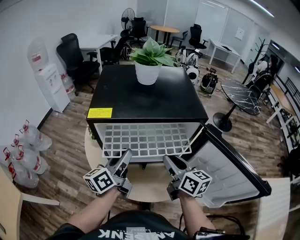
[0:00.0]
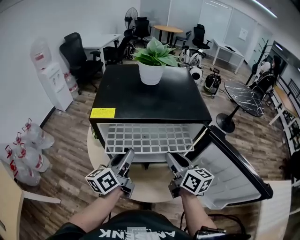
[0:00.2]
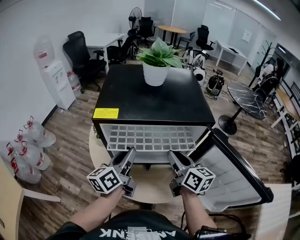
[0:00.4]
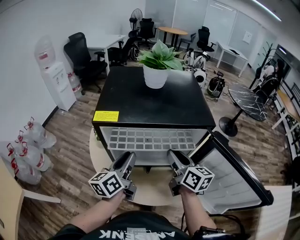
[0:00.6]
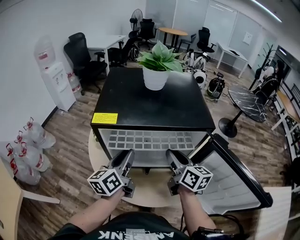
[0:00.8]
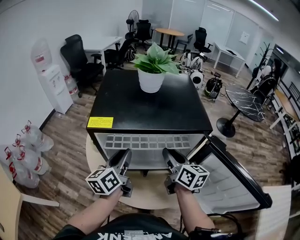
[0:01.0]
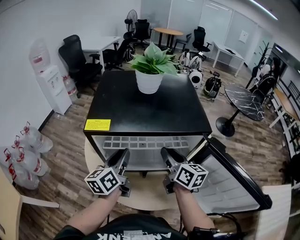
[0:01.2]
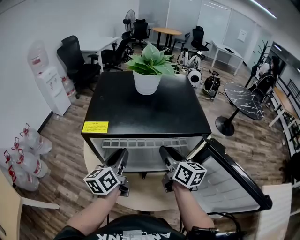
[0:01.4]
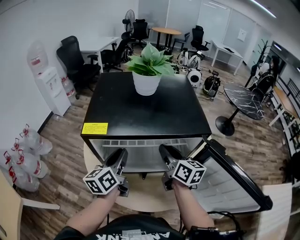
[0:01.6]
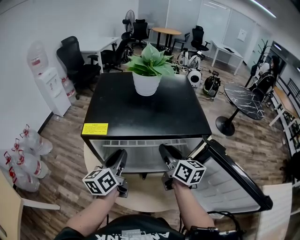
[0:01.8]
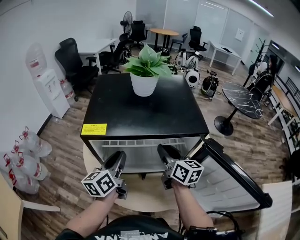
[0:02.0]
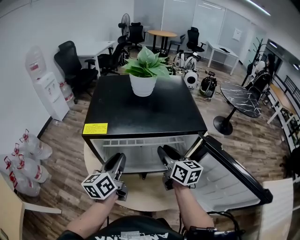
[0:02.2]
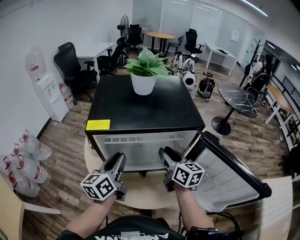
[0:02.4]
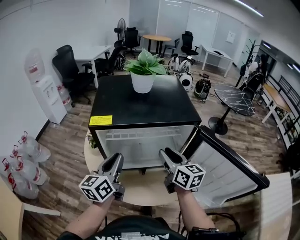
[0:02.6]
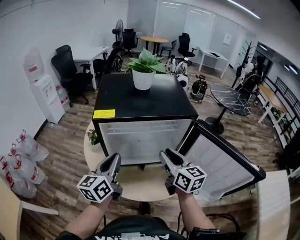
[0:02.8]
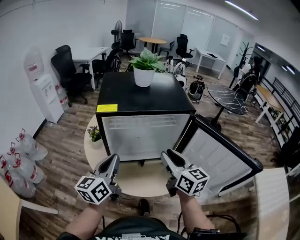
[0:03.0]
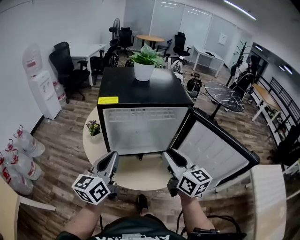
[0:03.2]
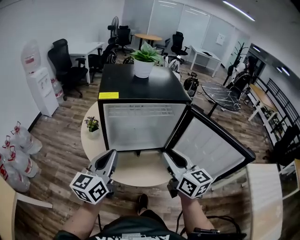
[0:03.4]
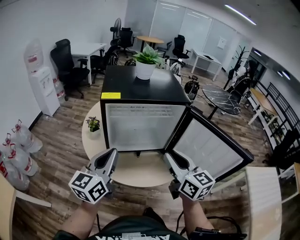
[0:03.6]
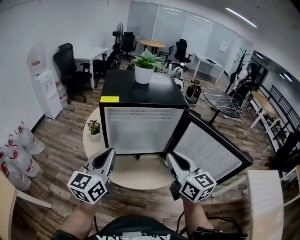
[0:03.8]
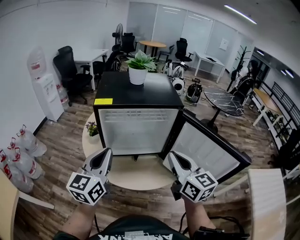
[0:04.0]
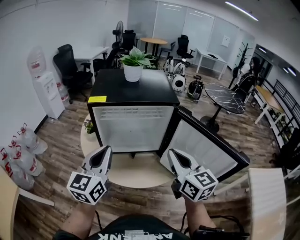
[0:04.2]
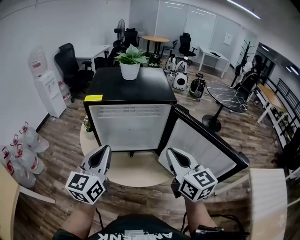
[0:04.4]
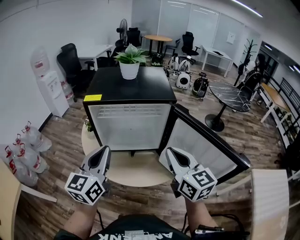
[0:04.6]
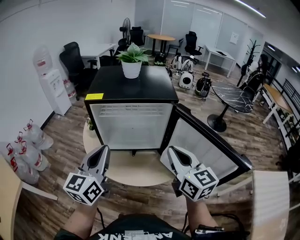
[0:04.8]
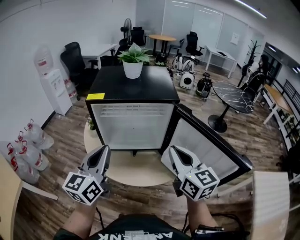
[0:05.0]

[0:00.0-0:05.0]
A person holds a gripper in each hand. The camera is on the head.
0:00.0 to 0:01.6: The right gripper travels forward by some 10 cm. Meanwhile the left gripper goes some 5 cm forward.
0:01.6 to 0:03.4: The two grippers go about 20 cm backward. The left gripper swivels about 20 degrees.
0:03.4 to 0:05.0: The right gripper moves to the right, approximately 10 cm, and closes up; the left gripper is displaced to the right and upward by about 10 cm.

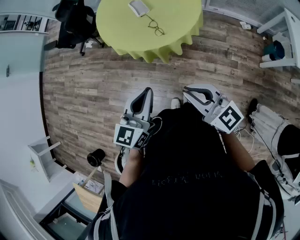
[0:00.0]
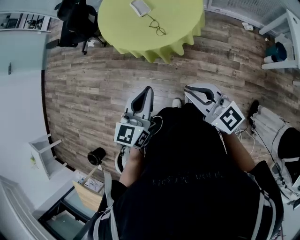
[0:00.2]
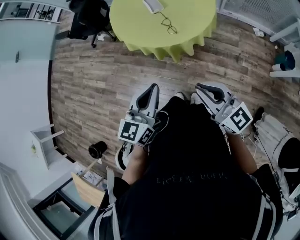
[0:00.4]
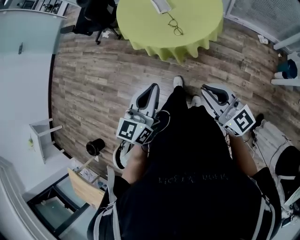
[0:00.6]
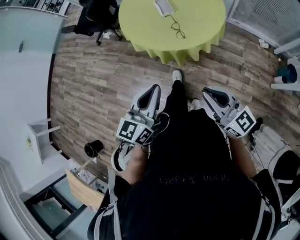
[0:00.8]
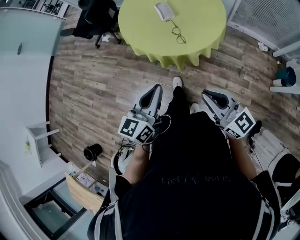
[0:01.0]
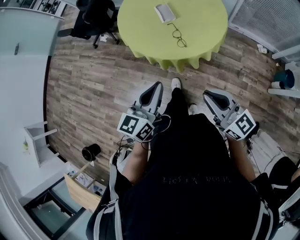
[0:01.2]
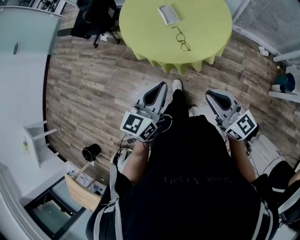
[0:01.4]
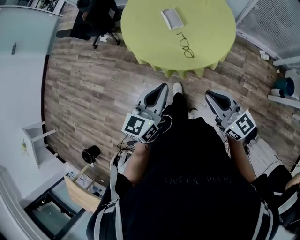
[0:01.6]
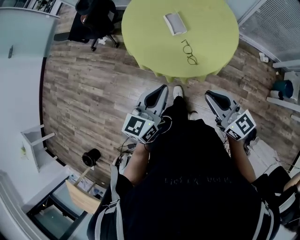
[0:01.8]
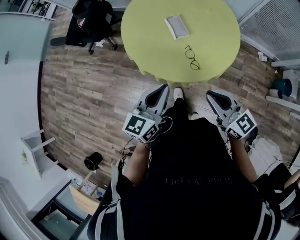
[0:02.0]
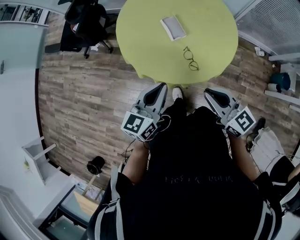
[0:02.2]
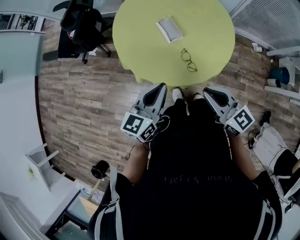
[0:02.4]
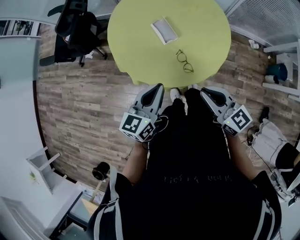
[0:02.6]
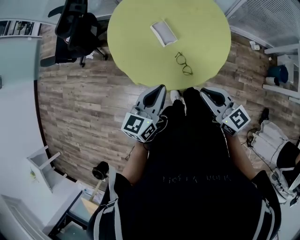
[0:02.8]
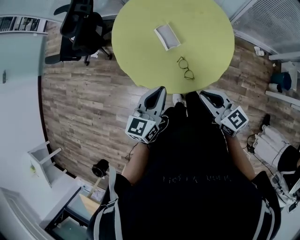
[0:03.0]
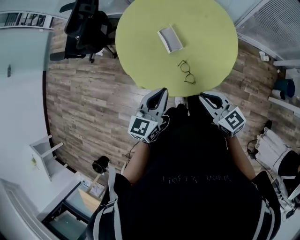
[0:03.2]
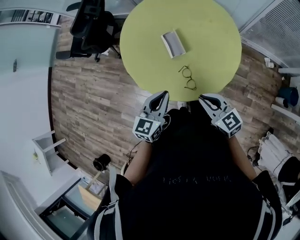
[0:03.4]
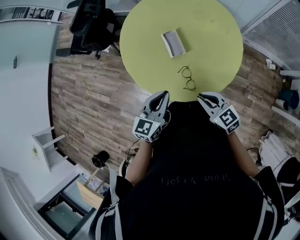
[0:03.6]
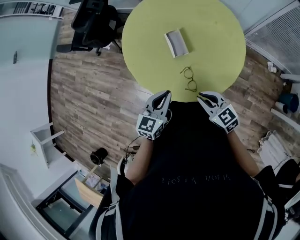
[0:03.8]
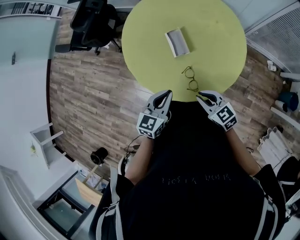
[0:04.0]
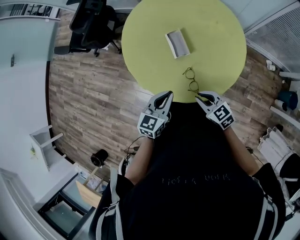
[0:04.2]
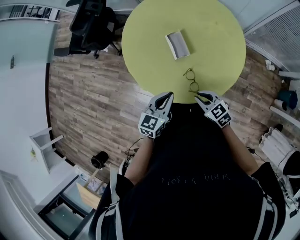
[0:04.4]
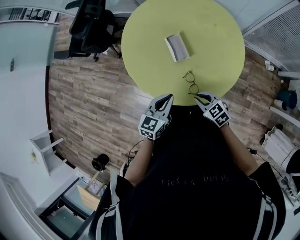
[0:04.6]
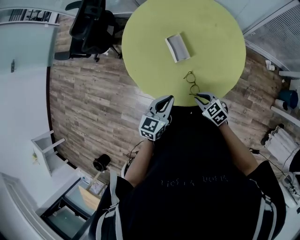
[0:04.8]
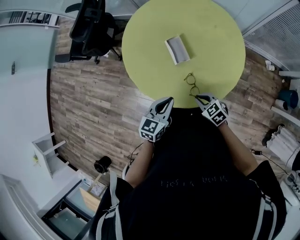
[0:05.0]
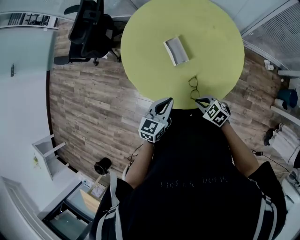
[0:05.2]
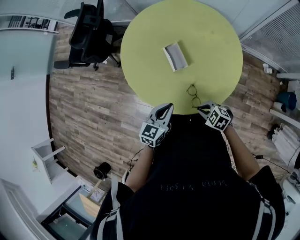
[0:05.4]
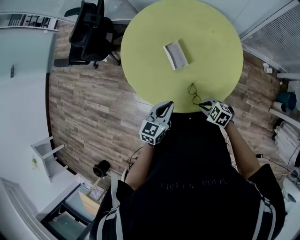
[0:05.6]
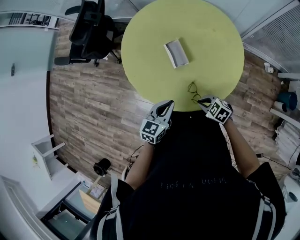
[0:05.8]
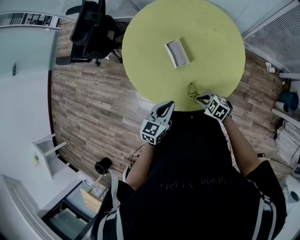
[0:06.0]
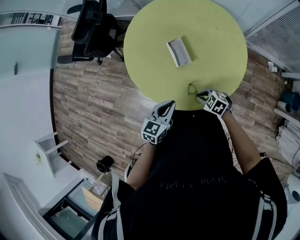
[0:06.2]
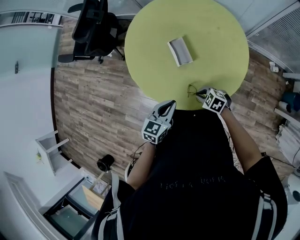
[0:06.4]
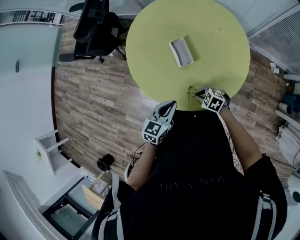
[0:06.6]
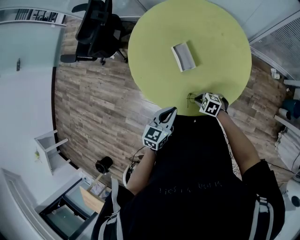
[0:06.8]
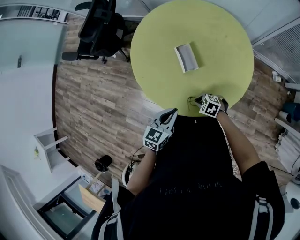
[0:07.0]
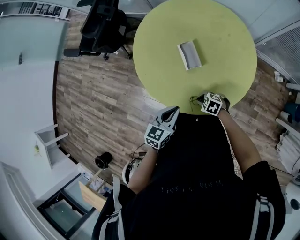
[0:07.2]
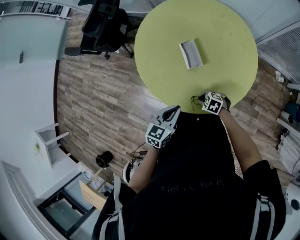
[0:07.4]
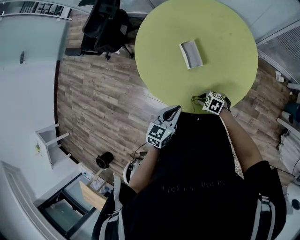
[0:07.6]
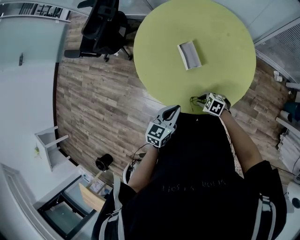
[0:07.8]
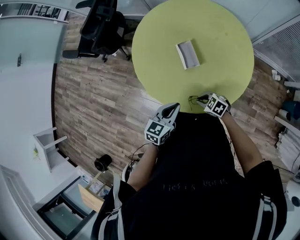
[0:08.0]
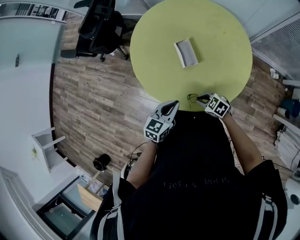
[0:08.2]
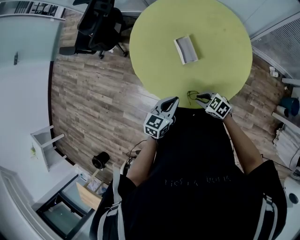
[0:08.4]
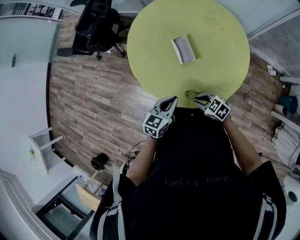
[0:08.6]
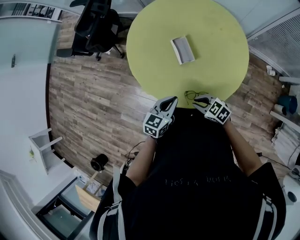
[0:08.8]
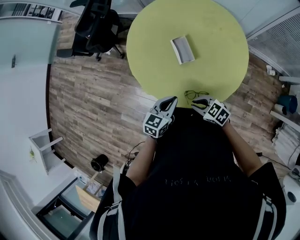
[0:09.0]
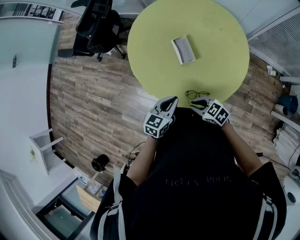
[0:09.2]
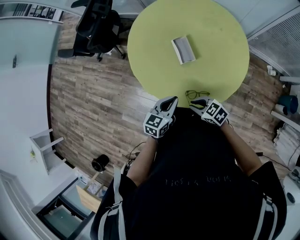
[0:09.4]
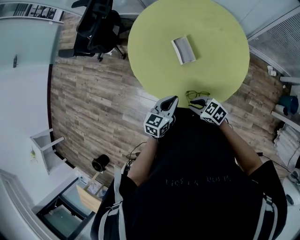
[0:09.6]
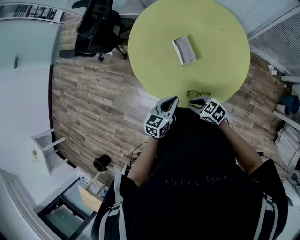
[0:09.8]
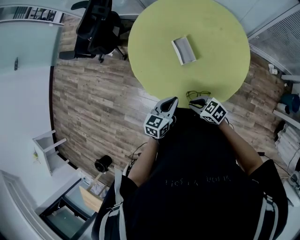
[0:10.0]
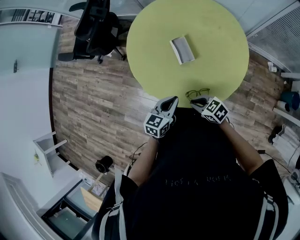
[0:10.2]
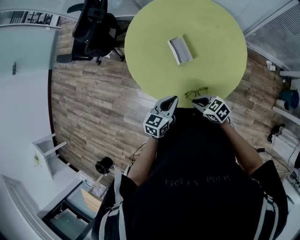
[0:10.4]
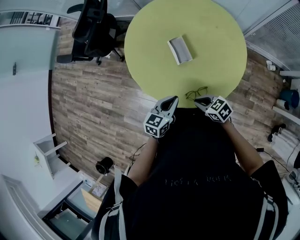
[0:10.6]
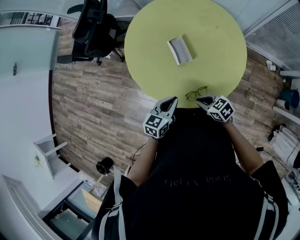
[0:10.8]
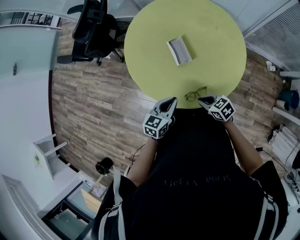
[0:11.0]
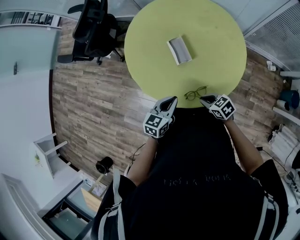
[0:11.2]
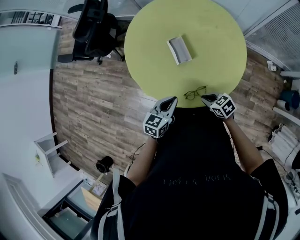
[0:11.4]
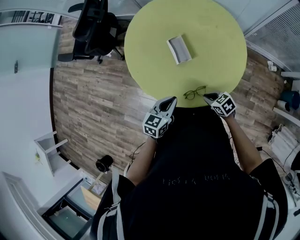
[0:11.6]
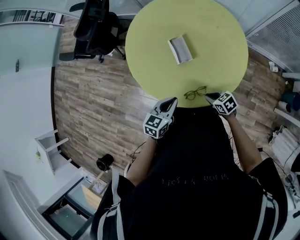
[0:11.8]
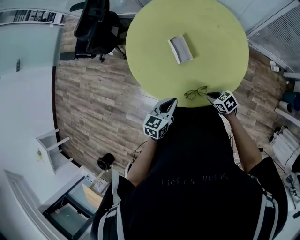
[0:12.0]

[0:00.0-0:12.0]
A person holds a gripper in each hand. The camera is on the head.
0:00.0 to 0:01.6: Both grippers move forward, roughly 15 cm.
0:01.6 to 0:03.0: The grippers both shift forward by about 15 cm.
0:03.0 to 0:04.4: The left gripper is displaced downward by roughly 10 cm; the right gripper heads downward, covering about 15 cm, and turns by some 30 degrees.
0:04.4 to 0:06.0: The right gripper moves downward, approximately 5 cm, and turns by some 20 degrees.
0:06.0 to 0:07.6: The right gripper heads downward, covering roughly 5 cm.
0:07.6 to 0:09.0: The right gripper shifts about 10 cm upward, and turns by roughly 20 degrees.
0:09.0 to 0:10.4: The grippers stay close to where they were, moving slightly.
0:10.4 to 0:12.0: The right gripper moves to the right and downward, approximately 10 cm.

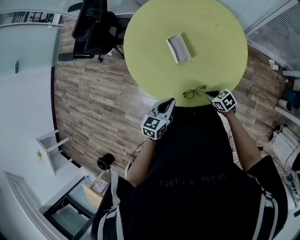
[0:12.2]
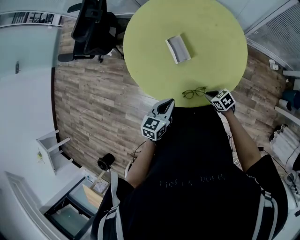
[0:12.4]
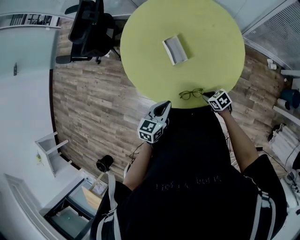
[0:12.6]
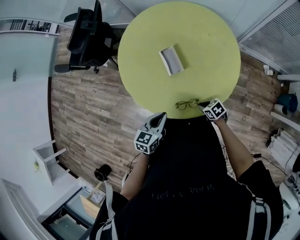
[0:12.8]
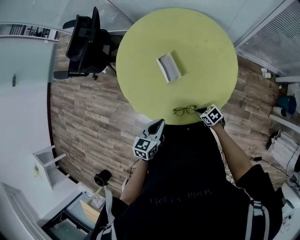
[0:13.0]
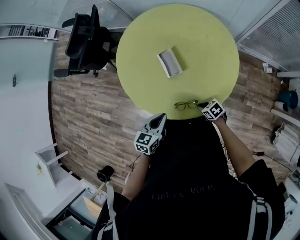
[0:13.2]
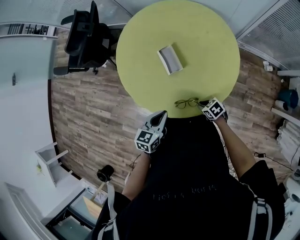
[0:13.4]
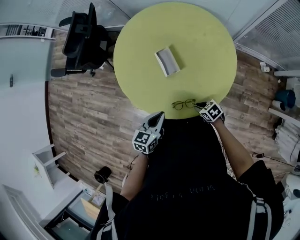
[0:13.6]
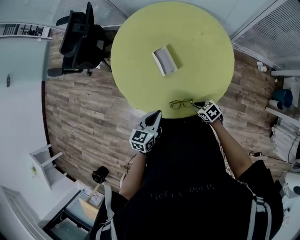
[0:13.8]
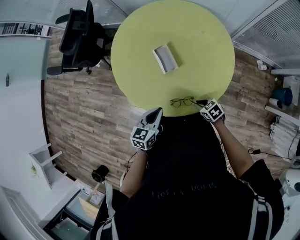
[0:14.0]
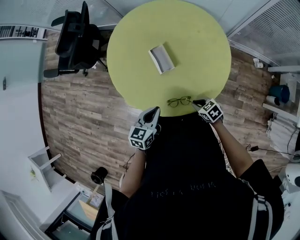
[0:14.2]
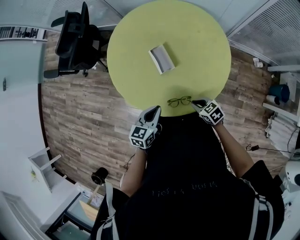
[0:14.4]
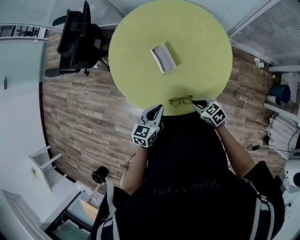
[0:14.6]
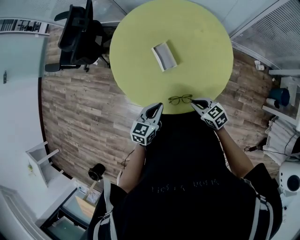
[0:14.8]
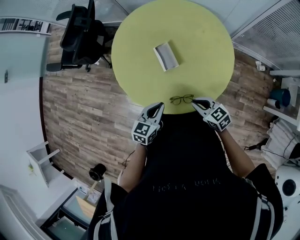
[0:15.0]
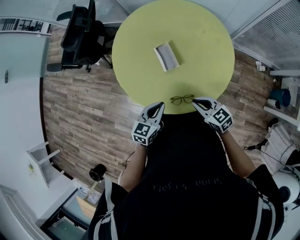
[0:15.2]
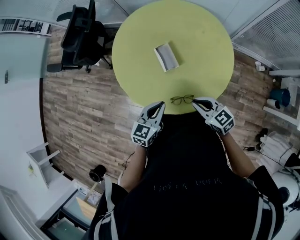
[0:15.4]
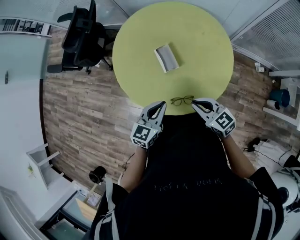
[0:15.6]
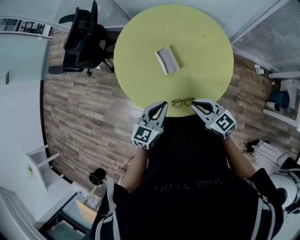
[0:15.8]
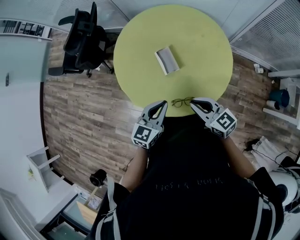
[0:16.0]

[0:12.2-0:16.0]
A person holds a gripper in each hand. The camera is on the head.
0:12.2 to 0:13.4: There are only small adjustments of the grippers.
0:13.4 to 0:14.8: The right gripper goes about 15 cm upward, and changes its angle by roughly 20 degrees.
0:14.8 to 0:16.0: The right gripper travels upward by some 15 cm, and changes its angle by about 20 degrees; the left gripper goes roughly 10 cm upward.

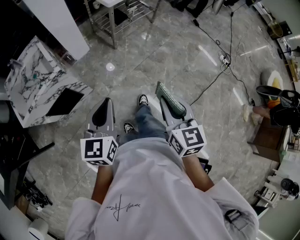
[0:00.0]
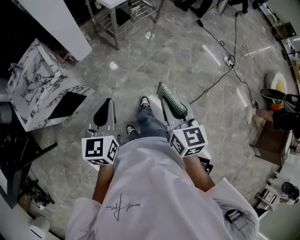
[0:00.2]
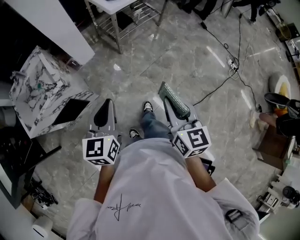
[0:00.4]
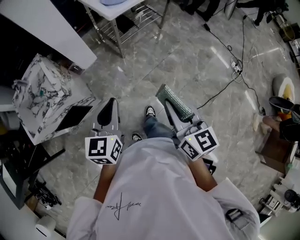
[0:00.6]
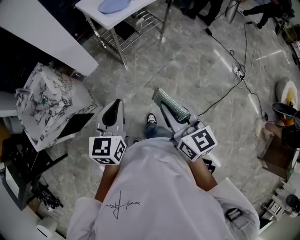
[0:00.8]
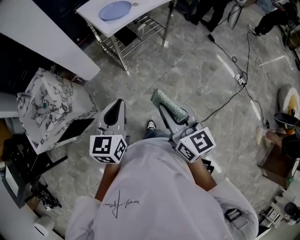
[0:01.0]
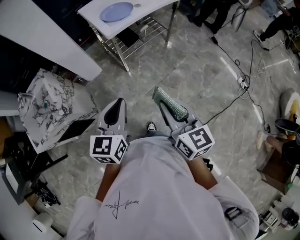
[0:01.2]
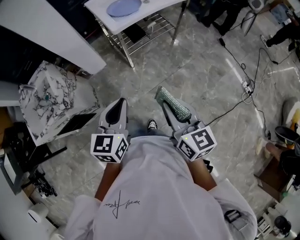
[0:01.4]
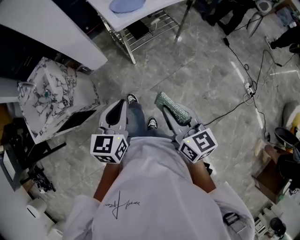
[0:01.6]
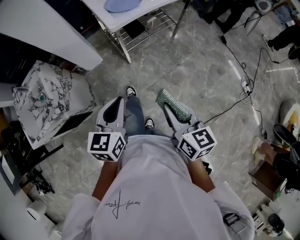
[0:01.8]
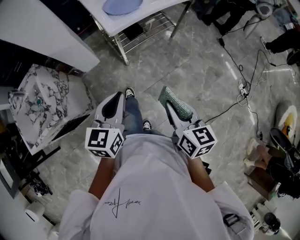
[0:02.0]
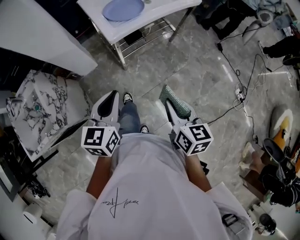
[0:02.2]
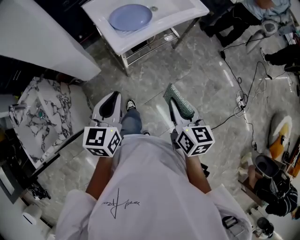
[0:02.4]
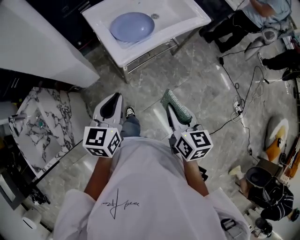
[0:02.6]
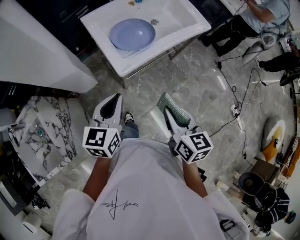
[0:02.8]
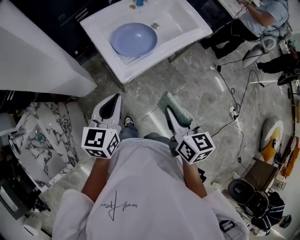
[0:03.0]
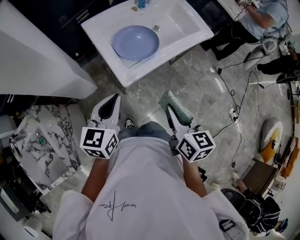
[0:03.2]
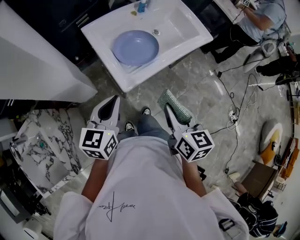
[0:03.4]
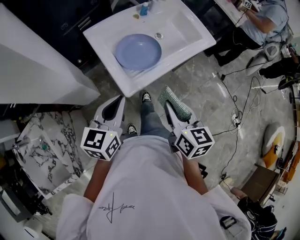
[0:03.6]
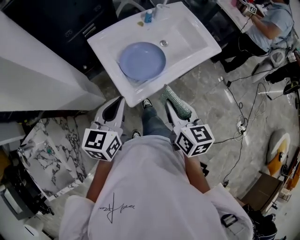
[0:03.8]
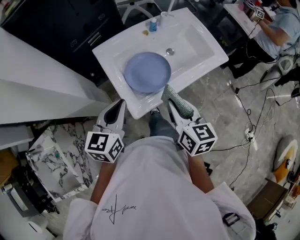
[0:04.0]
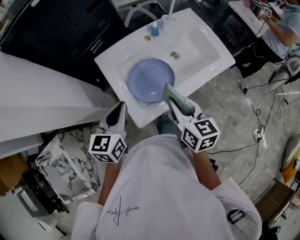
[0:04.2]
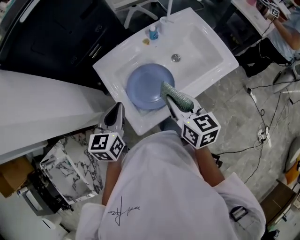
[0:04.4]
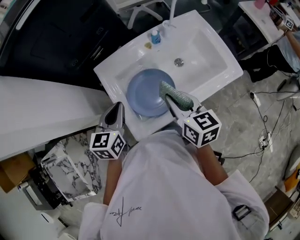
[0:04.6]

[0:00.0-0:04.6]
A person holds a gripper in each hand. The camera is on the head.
0:00.0 to 0:01.6: The right gripper travels forward by about 25 cm, and turns by roughly 20 degrees. Meanwhile the left gripper heads forward and to the right, covering about 30 cm.
0:01.6 to 0:03.0: The two grippers go some 35 cm forward.
0:03.0 to 0:04.6: The grippers both shift forward by about 30 cm.
